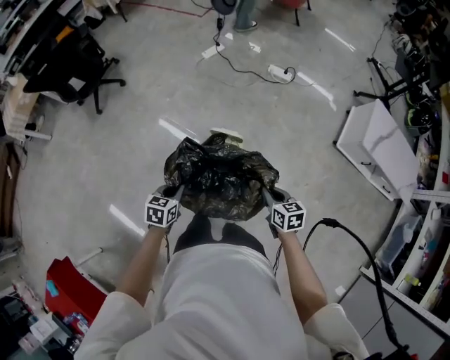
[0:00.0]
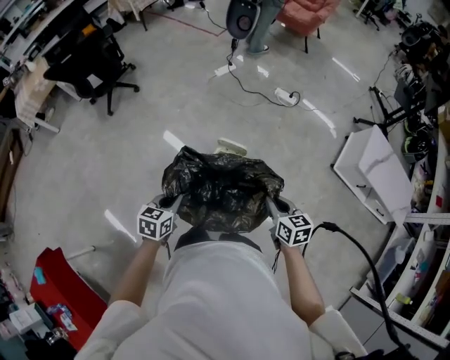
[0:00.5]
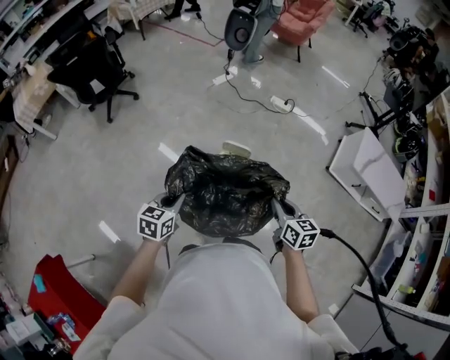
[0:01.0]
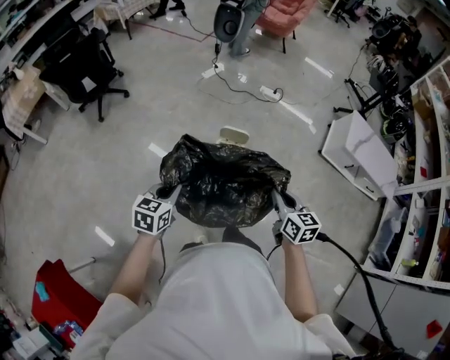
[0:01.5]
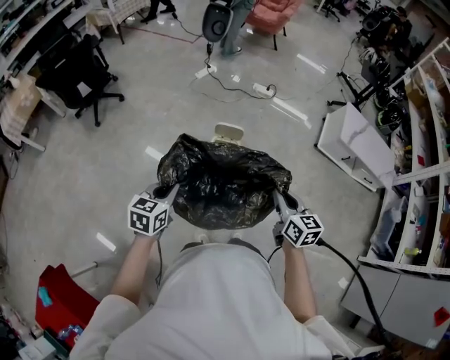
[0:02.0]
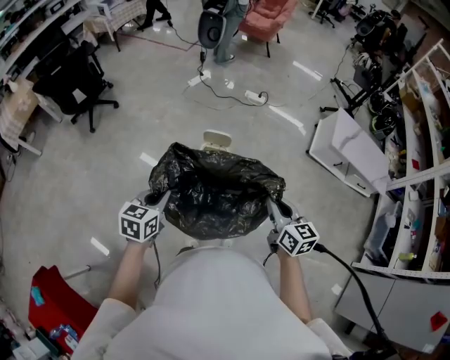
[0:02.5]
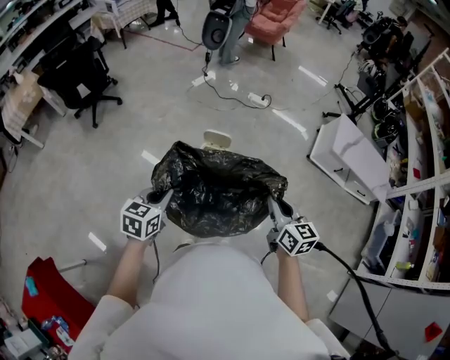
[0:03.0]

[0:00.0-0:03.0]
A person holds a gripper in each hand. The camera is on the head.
0:00.0 to 0:01.5: Both grippers travel together upward, backward and to the left, roughly 25 cm. The right gripper rotates roughly 20 degrees.
0:01.5 to 0:03.0: The left gripper heads to the right, covering some 10 cm. The right gripper travels to the right and upward by some 10 cm.

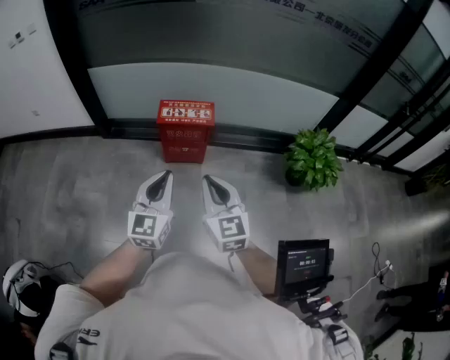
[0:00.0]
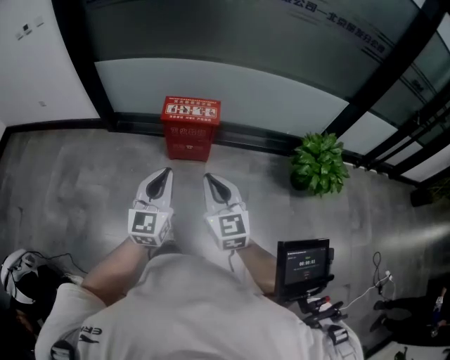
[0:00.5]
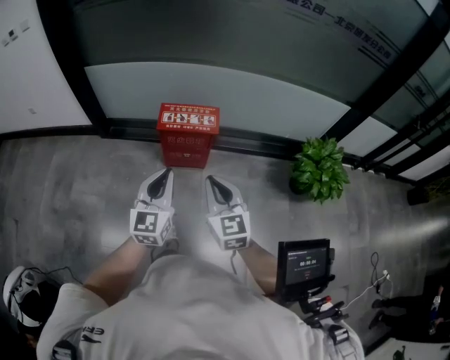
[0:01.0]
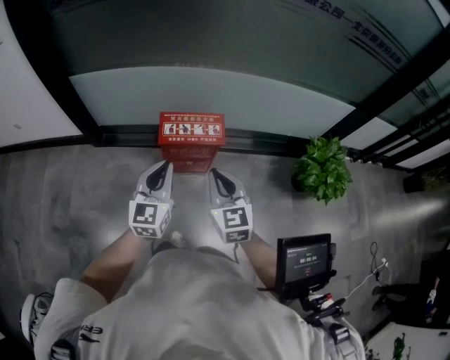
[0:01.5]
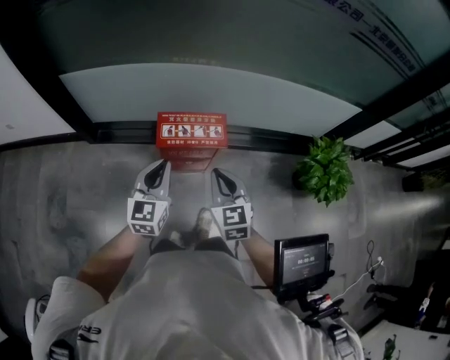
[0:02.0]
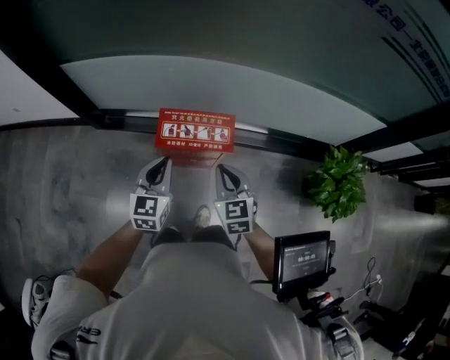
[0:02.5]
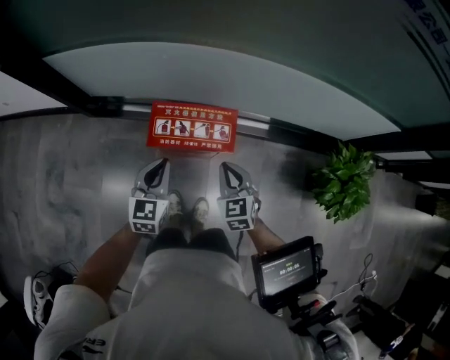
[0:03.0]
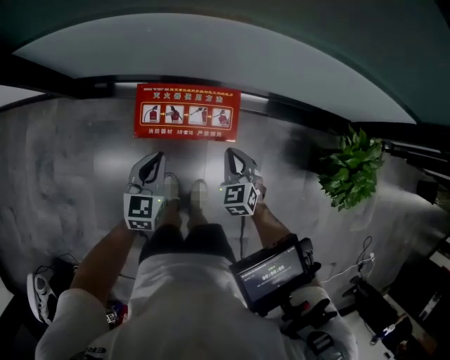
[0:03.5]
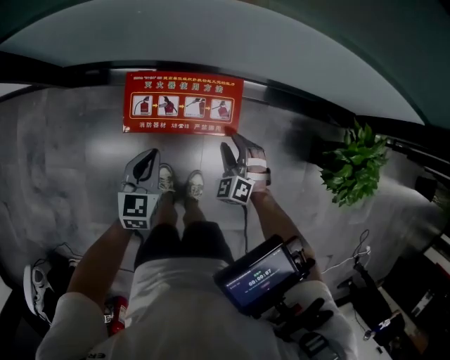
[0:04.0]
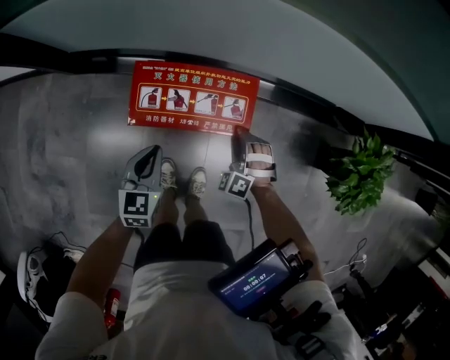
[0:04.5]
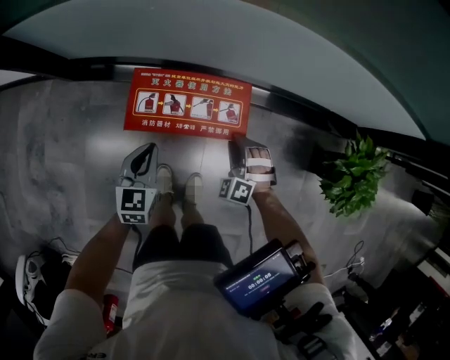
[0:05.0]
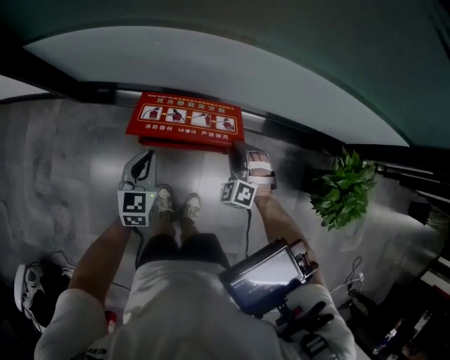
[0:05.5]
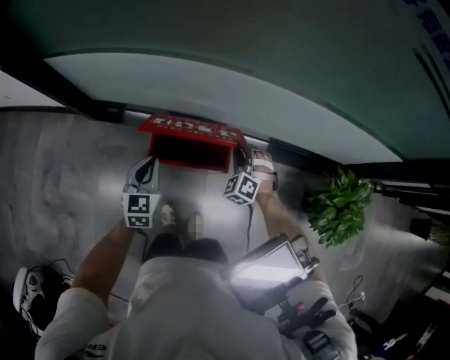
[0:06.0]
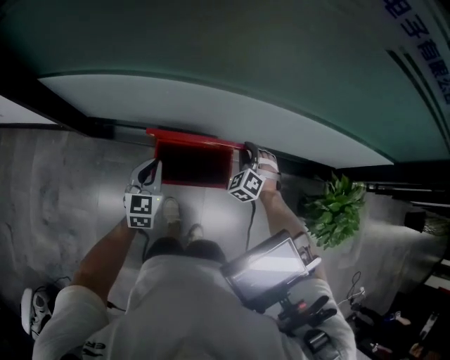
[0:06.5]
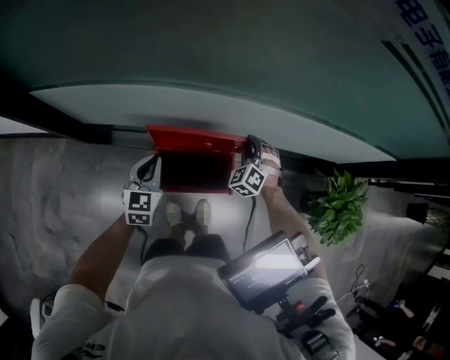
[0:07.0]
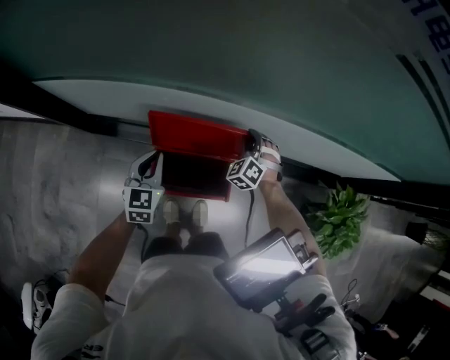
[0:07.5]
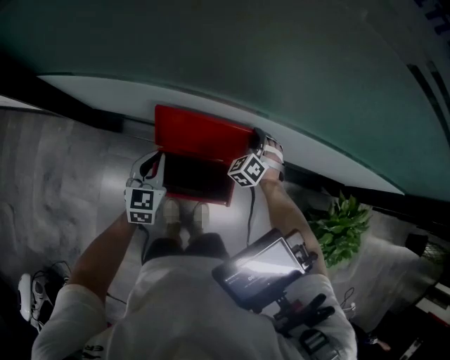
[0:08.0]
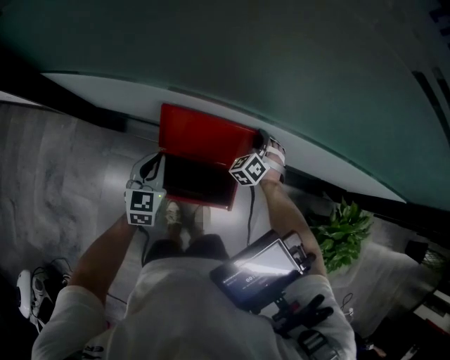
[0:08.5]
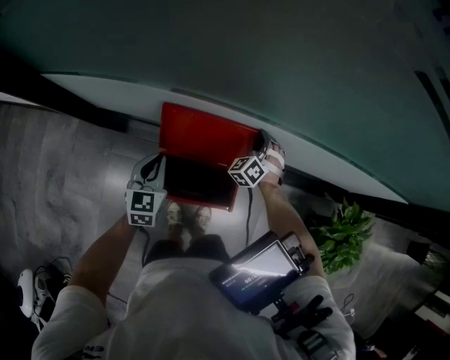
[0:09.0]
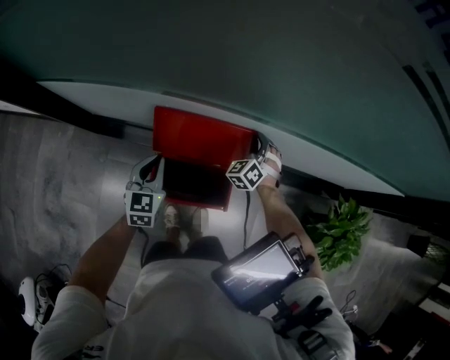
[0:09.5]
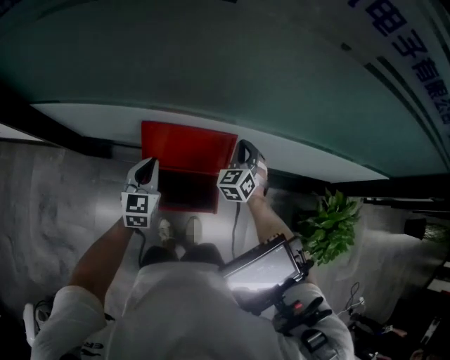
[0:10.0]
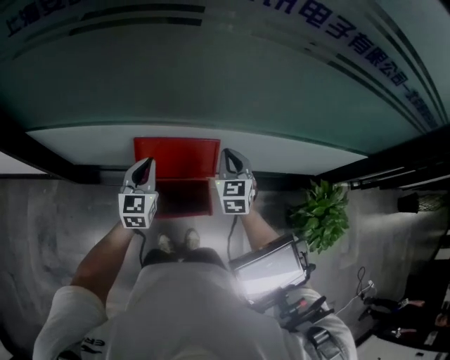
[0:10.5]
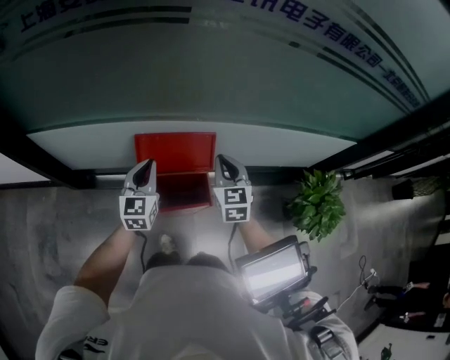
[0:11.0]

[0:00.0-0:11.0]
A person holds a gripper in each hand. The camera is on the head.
0:00.0 to 0:02.0: Both grippers move forward, roughly 35 cm.
0:02.0 to 0:03.5: Both grippers travel together downward and forward, roughly 30 cm. The left gripper rotates approximately 20 degrees. The right gripper rotates some 30 degrees.
0:03.5 to 0:05.5: The left gripper moves approximately 10 cm downward and comes back. The right gripper goes some 5 cm forward, moves roughly 10 cm downward and comes back, rolls counterclockwise, seen from behind, by roughly 40 degrees, and opens.
0:05.5 to 0:07.5: The grippers both shift forward by approximately 20 cm.
0:07.5 to 0:09.0: The right gripper is displaced forward by approximately 5 cm.
0:09.0 to 0:11.0: The right gripper shifts roughly 30 cm upward and backward, and rolls clockwise, seen from behind, by roughly 50 degrees. Meanwhile the left gripper heads upward, covering approximately 15 cm, and turns by roughly 20 degrees.

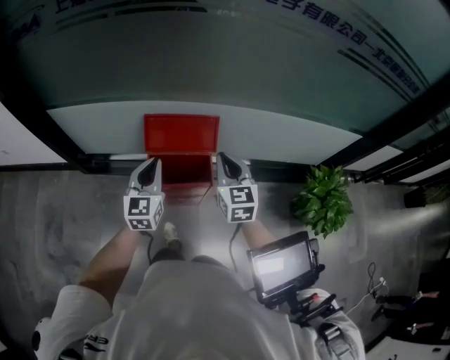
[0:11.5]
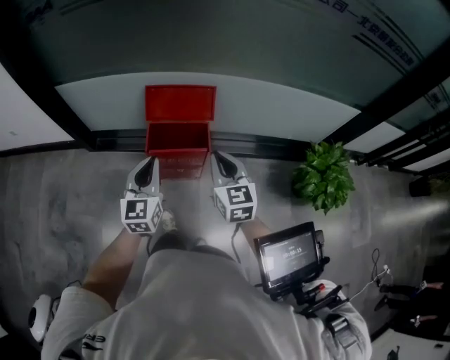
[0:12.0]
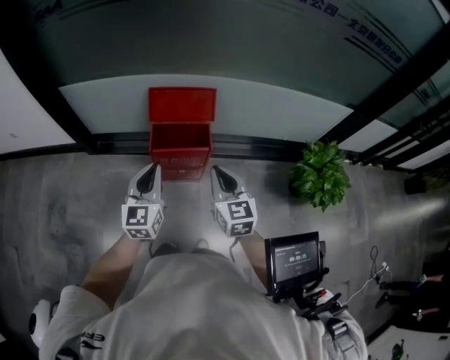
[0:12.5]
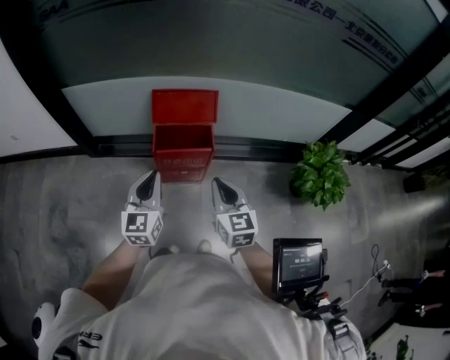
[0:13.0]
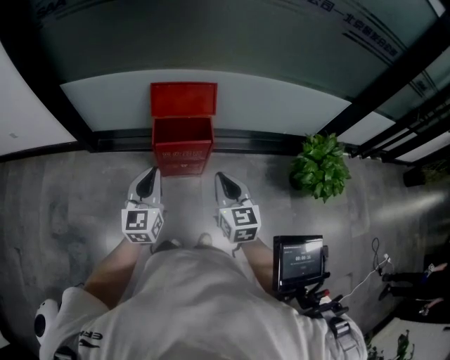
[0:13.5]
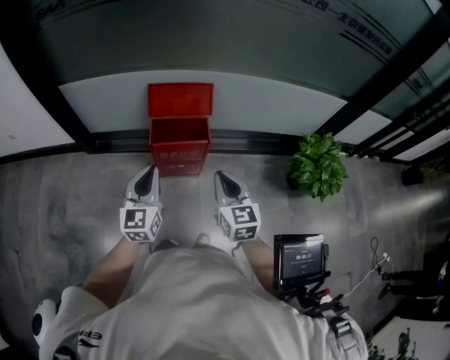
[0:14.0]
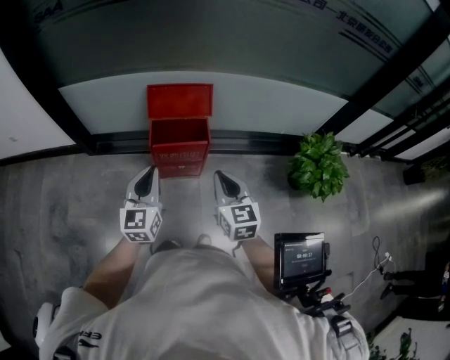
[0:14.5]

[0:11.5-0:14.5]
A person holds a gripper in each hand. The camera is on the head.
0:11.5 to 0:13.0: Both grippers move backward, about 25 cm.
0:13.0 to 0:14.5: There are only small adjustments of the grippers.

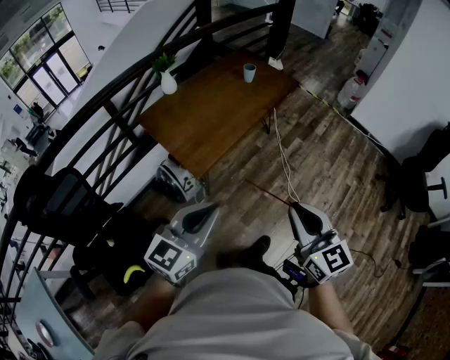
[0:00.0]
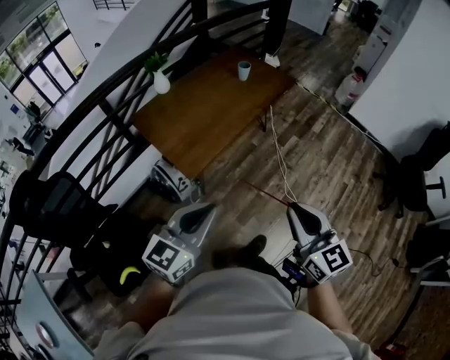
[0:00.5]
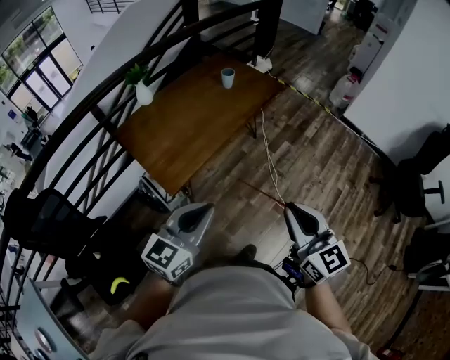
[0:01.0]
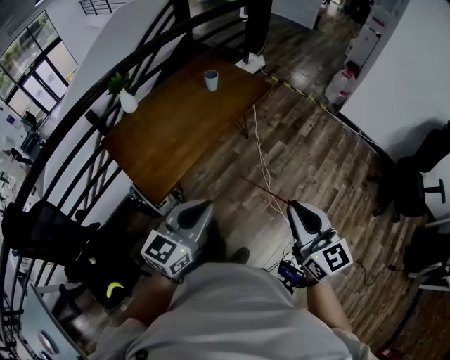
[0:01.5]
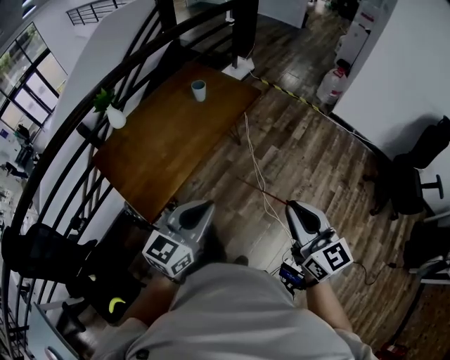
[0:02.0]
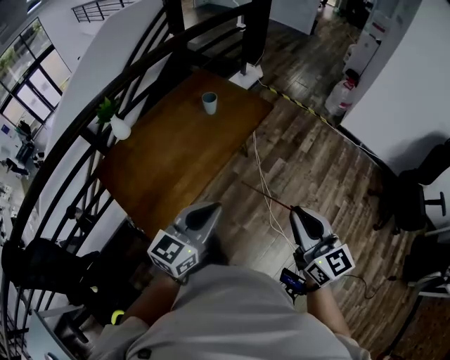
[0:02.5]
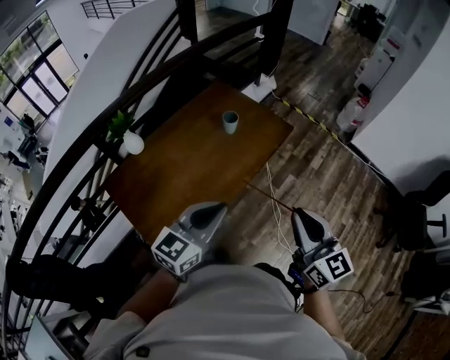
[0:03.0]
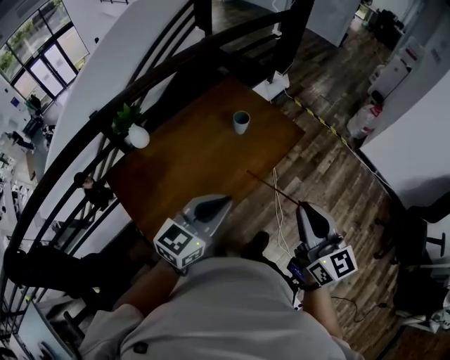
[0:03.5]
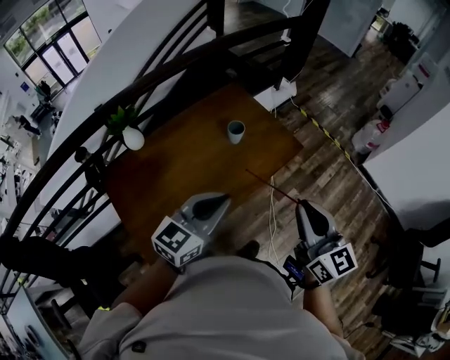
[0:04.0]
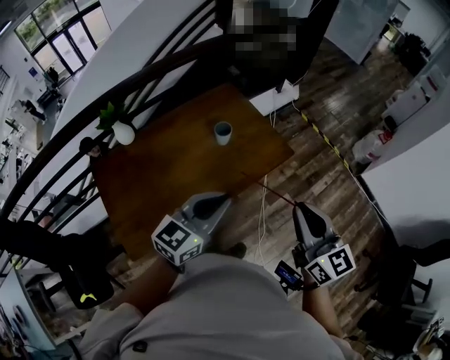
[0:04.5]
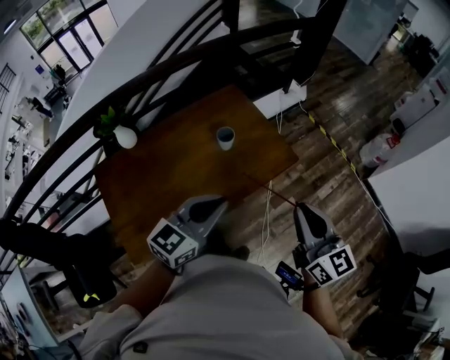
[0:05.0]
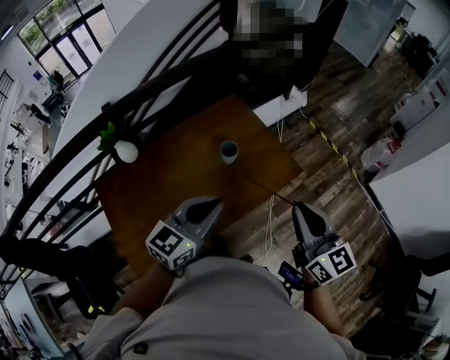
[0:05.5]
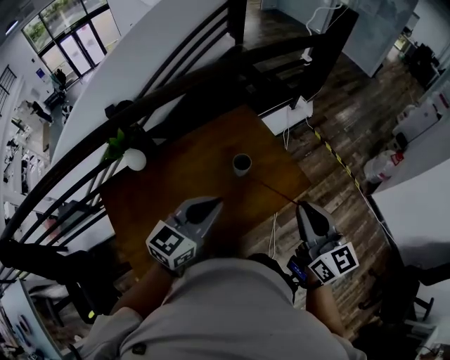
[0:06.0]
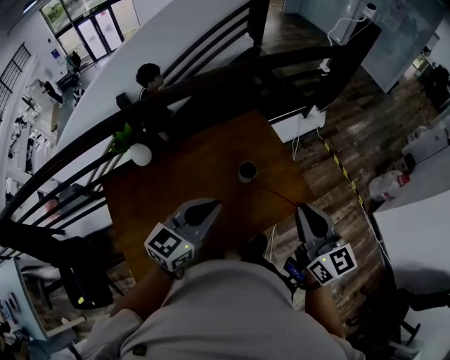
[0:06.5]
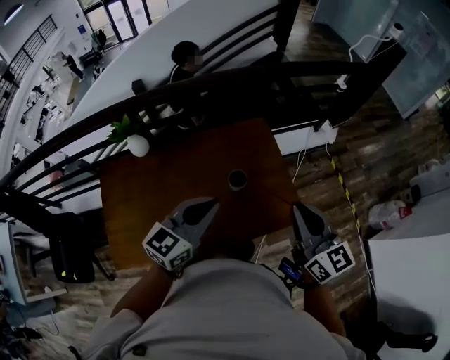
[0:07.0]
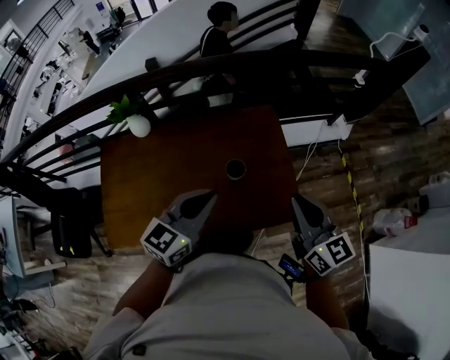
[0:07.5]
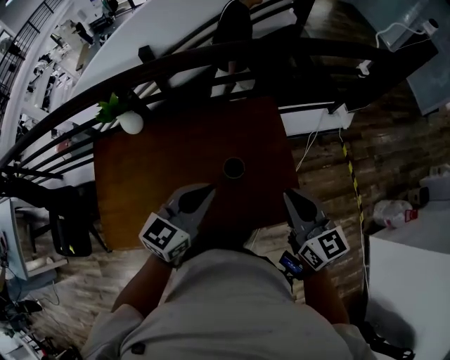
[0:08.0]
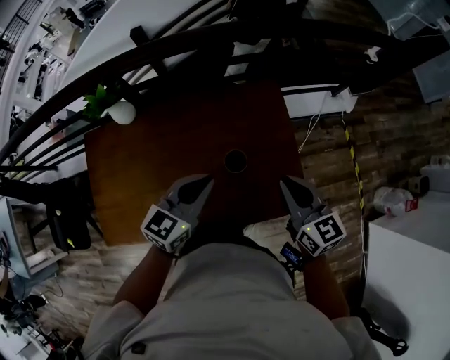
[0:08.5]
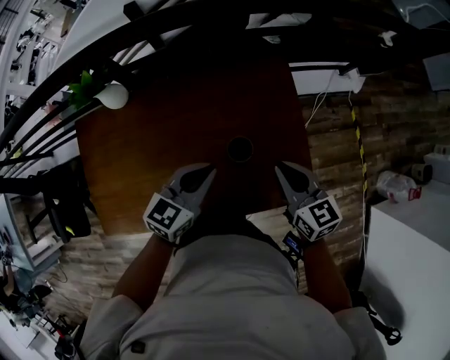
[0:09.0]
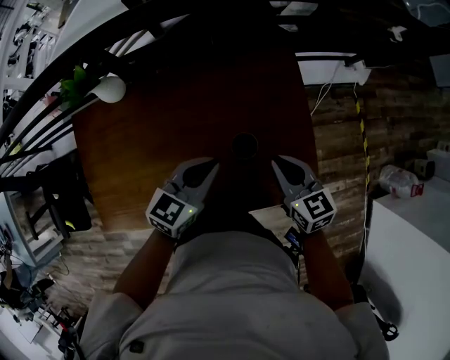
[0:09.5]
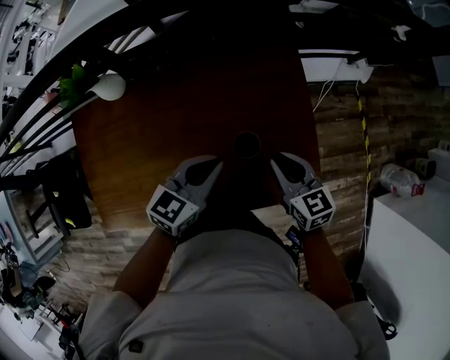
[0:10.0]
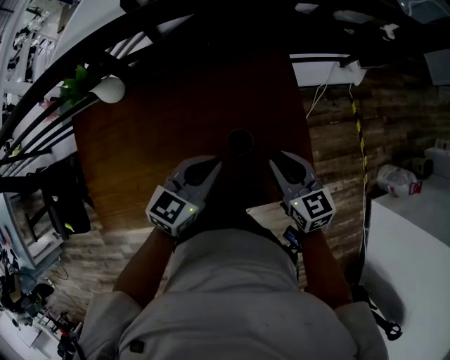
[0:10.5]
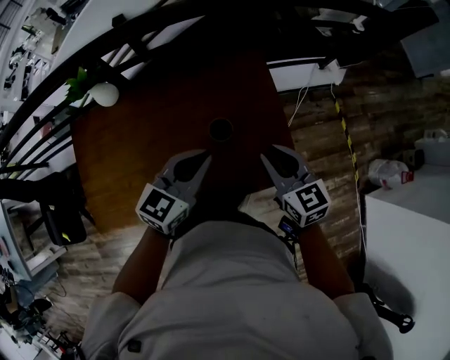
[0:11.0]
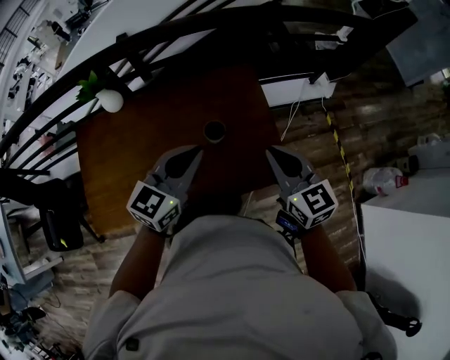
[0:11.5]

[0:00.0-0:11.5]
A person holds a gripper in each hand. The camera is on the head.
0:00.0 to 0:02.0: Both grippers move forward and to the right, roughly 35 cm.
0:02.0 to 0:04.0: Both grippers move forward, approximately 40 cm.
0:04.0 to 0:06.0: The grippers both shift forward by about 20 cm.
0:06.0 to 0:07.5: The right gripper moves some 20 cm, and rotates roughly 30 degrees; the left gripper changes place by roughly 15 cm, and changes its angle by approximately 30 degrees.
0:07.5 to 0:09.5: The grippers both shift downward and forward by approximately 25 cm. The right gripper changes its angle by roughly 20 degrees.
0:09.5 to 0:11.5: Both grippers move upward and backward, approximately 20 cm.
